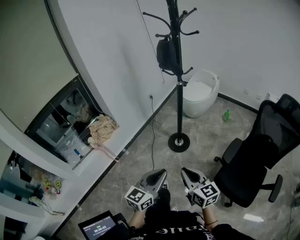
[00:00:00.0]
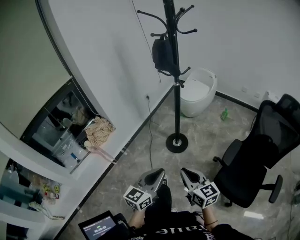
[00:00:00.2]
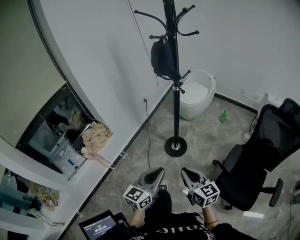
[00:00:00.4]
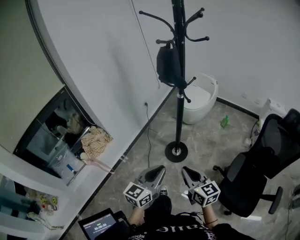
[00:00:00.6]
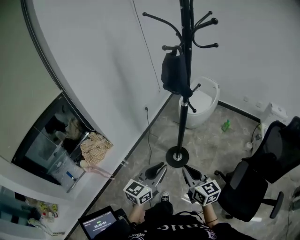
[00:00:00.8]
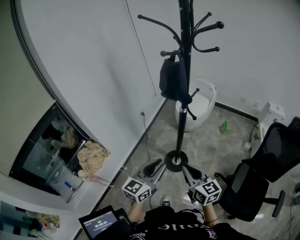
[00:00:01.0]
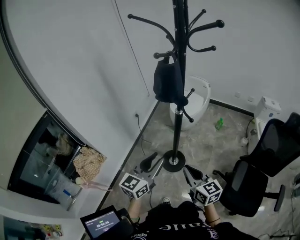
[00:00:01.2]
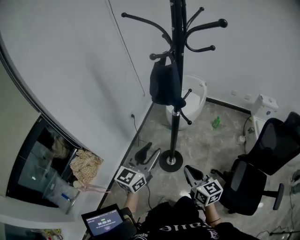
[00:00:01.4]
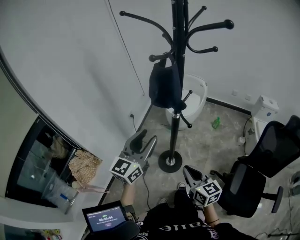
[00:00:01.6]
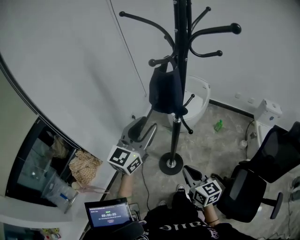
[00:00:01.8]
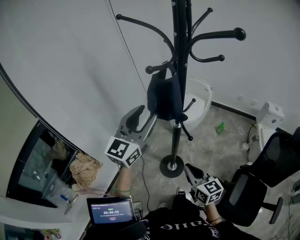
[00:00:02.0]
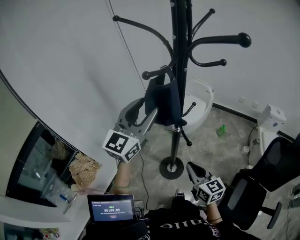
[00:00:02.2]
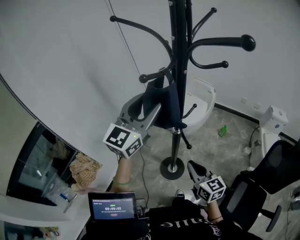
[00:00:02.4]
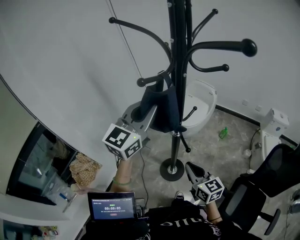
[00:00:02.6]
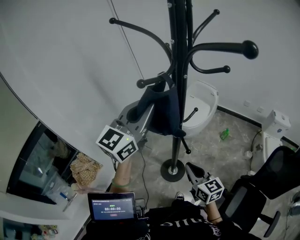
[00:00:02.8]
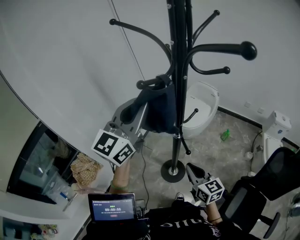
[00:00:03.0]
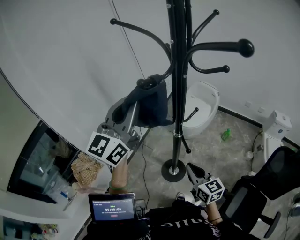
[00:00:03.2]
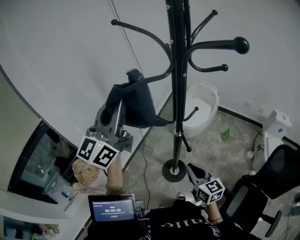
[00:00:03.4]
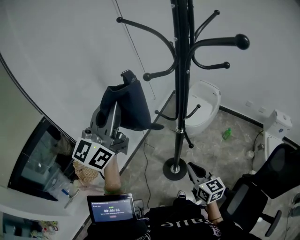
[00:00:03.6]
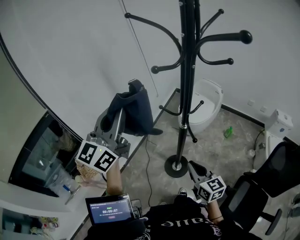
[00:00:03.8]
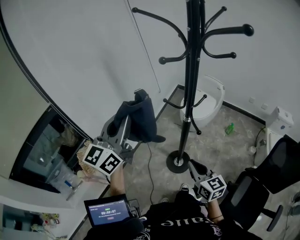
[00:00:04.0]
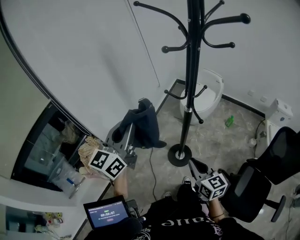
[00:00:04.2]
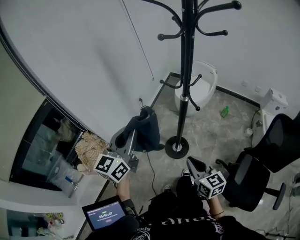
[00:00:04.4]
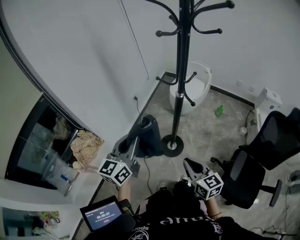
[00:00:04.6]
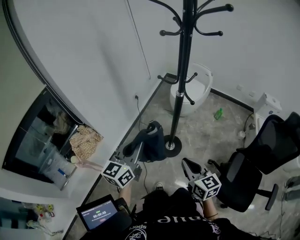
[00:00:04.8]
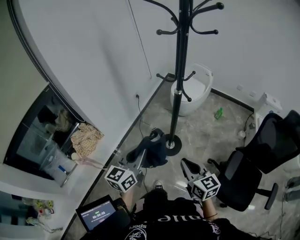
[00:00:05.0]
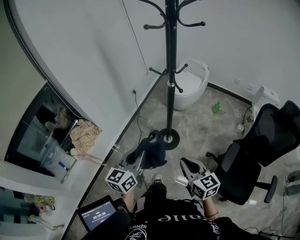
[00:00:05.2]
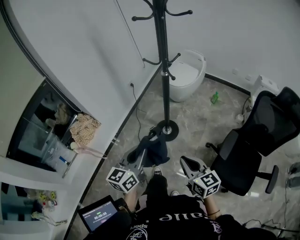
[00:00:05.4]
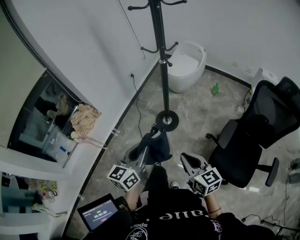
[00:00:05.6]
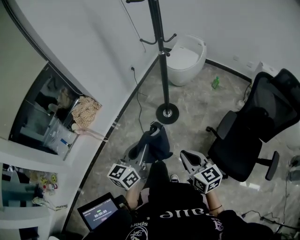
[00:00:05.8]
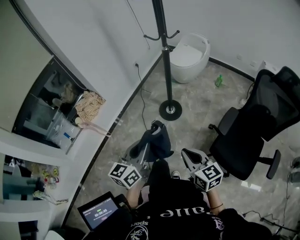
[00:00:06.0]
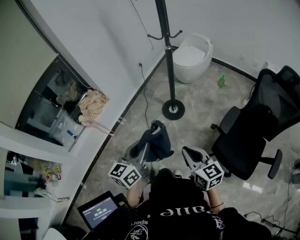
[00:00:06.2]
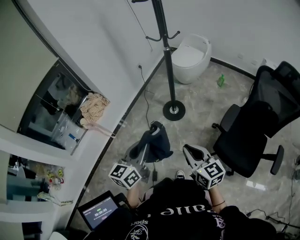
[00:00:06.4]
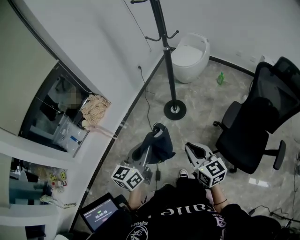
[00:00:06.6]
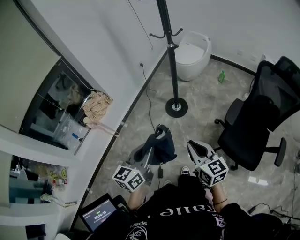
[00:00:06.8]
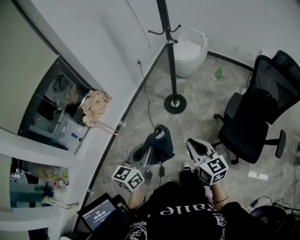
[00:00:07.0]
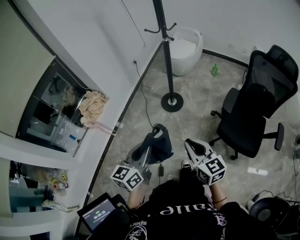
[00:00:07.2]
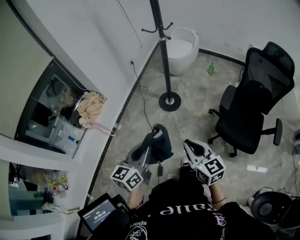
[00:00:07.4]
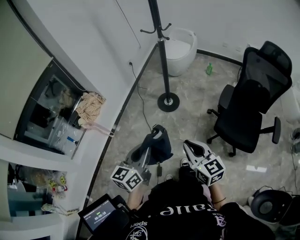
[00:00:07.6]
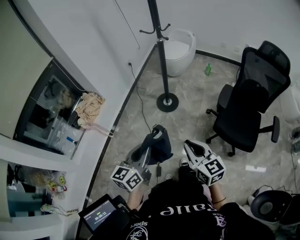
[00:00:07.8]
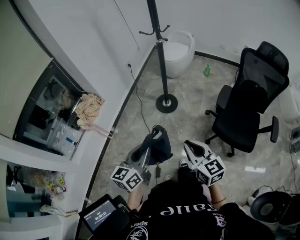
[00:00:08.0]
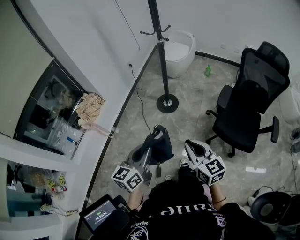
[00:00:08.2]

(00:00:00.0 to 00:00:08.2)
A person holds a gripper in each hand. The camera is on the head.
00:00:00.0 - 00:00:01.6: Both grippers travel together forward, some 40 cm. The left gripper opens up.
00:00:01.6 - 00:00:03.2: The right gripper heads forward, covering roughly 15 cm. Meanwhile the left gripper travels upward and forward by roughly 20 cm, and closes.
00:00:03.2 - 00:00:05.0: The left gripper heads backward and downward, covering some 40 cm, and changes its angle by some 30 degrees. Meanwhile the right gripper shifts roughly 25 cm backward.
00:00:05.0 - 00:00:06.6: Both grippers move backward, some 30 cm.
00:00:06.6 - 00:00:08.2: The grippers both shift backward and to the left by about 15 cm.

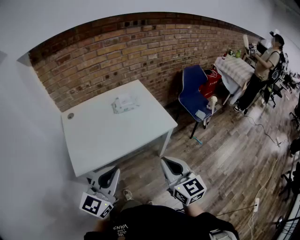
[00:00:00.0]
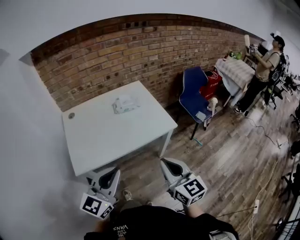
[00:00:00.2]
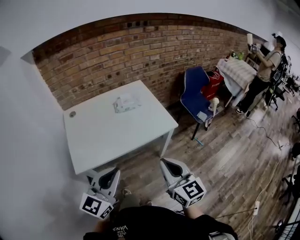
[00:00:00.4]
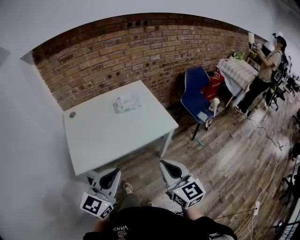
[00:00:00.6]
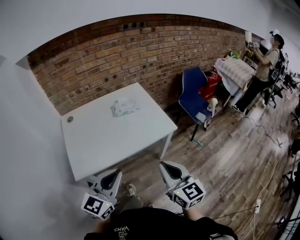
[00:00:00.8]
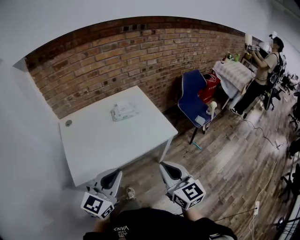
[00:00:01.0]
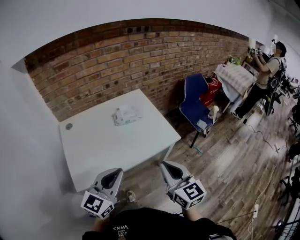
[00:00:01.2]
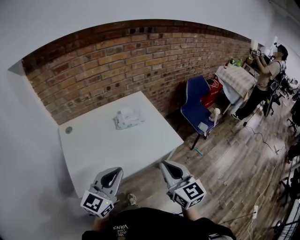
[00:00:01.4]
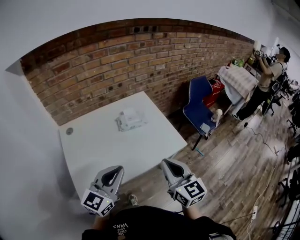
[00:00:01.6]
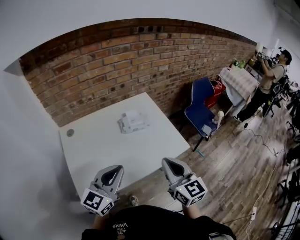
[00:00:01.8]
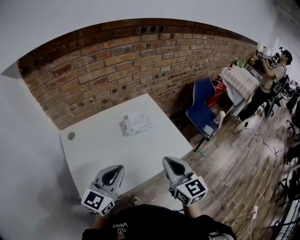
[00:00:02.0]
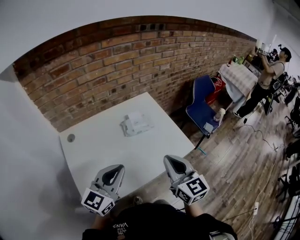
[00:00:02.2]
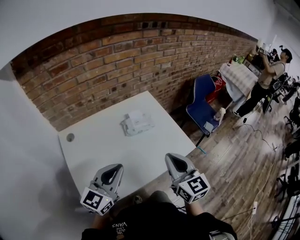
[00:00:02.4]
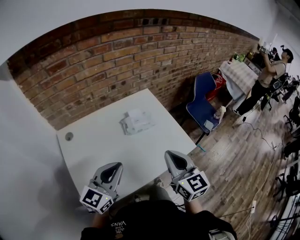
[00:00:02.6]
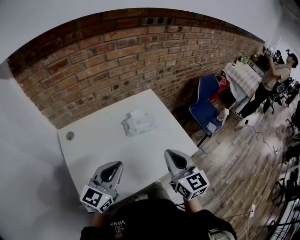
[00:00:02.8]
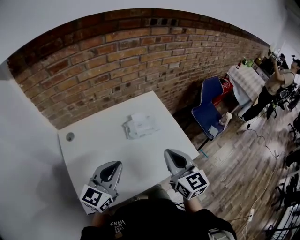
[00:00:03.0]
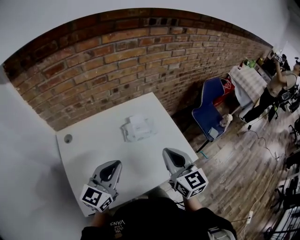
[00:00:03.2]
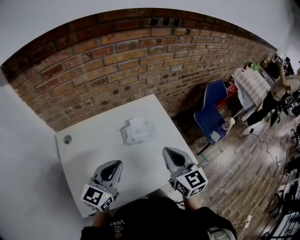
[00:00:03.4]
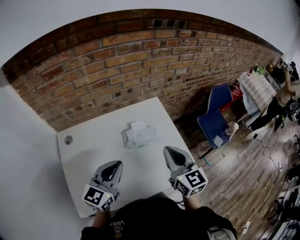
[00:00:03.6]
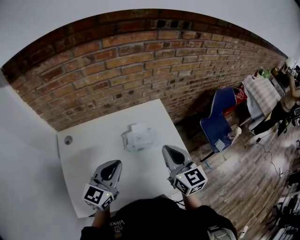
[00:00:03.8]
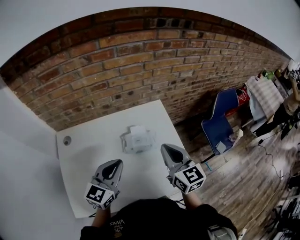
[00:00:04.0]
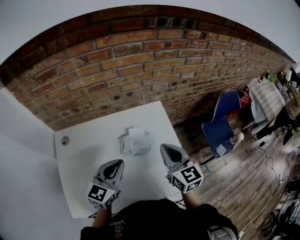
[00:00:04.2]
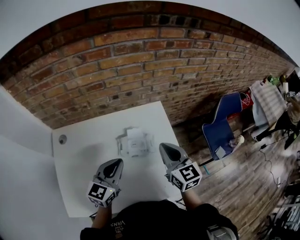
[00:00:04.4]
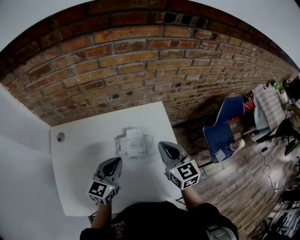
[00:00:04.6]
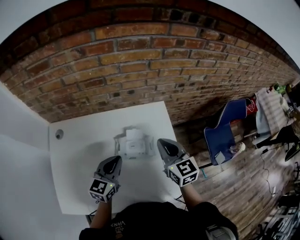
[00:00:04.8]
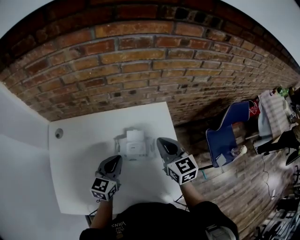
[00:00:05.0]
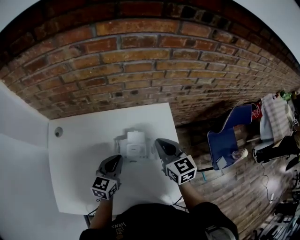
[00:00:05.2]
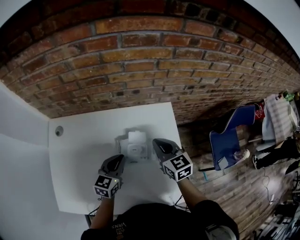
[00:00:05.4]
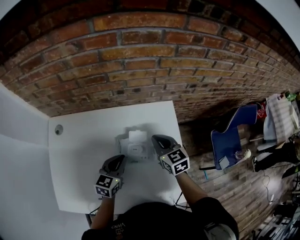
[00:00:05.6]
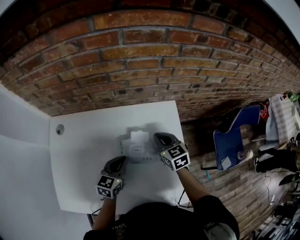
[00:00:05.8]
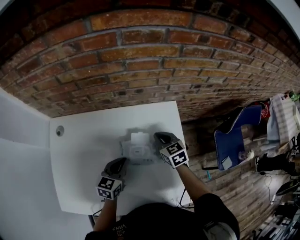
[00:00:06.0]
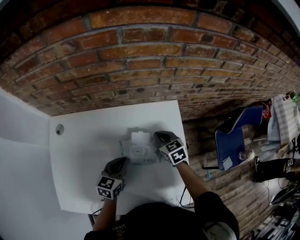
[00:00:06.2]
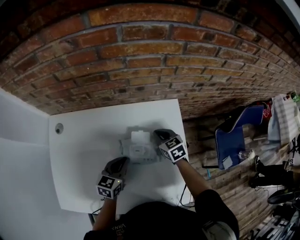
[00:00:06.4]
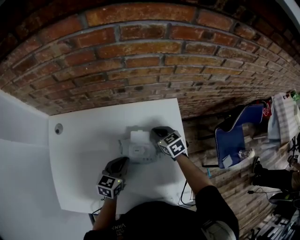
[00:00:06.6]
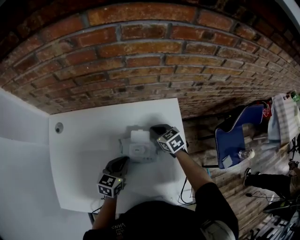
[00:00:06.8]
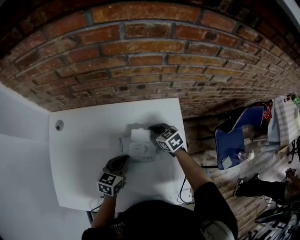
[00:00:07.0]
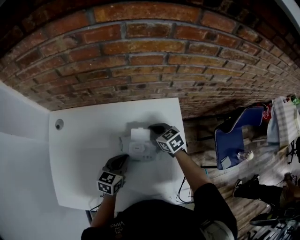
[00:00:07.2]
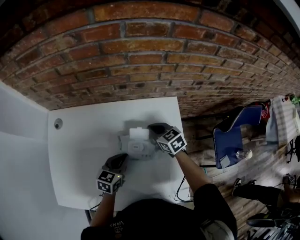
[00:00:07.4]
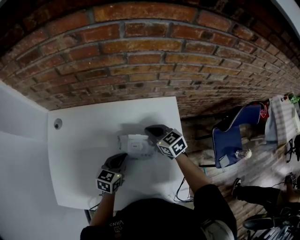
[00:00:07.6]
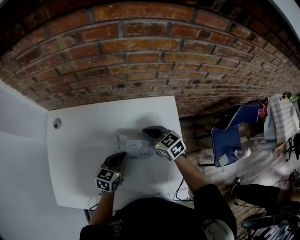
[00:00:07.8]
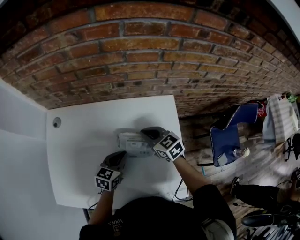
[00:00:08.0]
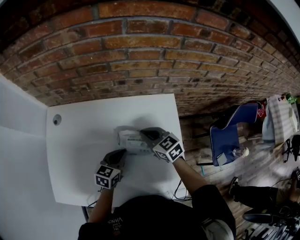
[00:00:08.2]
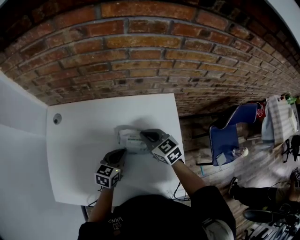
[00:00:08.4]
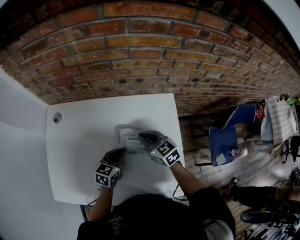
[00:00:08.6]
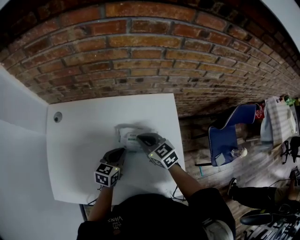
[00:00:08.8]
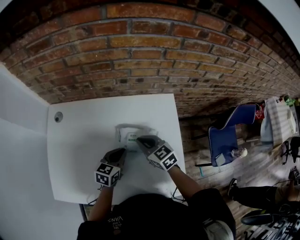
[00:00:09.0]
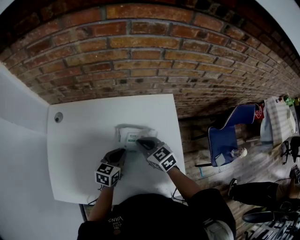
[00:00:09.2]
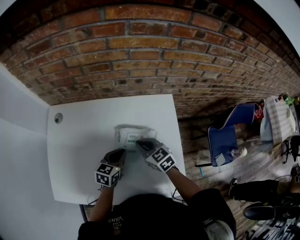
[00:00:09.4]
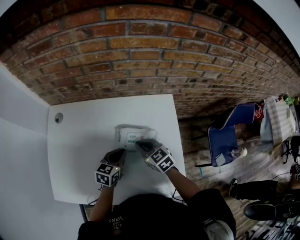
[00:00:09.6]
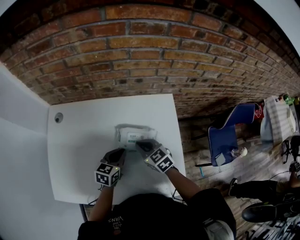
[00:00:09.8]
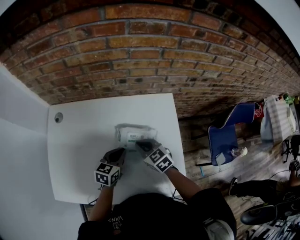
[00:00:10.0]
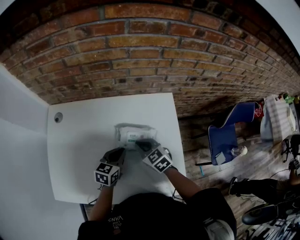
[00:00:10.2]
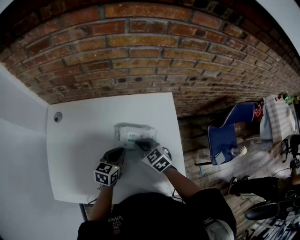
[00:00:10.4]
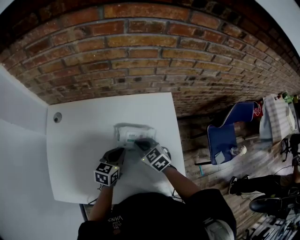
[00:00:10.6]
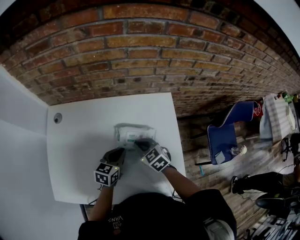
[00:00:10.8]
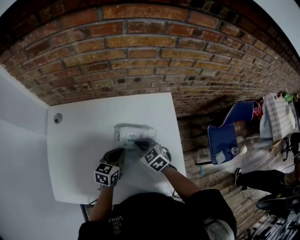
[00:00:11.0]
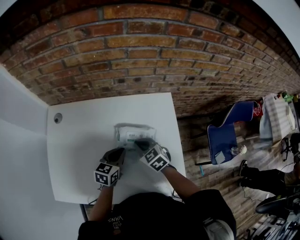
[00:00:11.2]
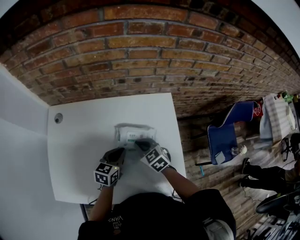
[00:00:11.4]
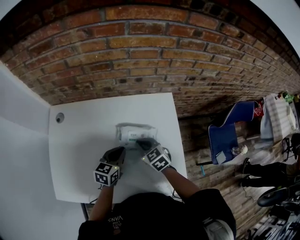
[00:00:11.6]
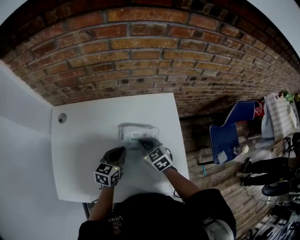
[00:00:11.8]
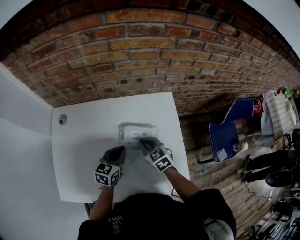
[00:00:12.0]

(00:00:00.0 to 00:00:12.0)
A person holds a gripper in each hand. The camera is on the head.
00:00:00.0 - 00:00:01.6: The left gripper is displaced forward by approximately 15 cm, while the right gripper heads forward and to the left, covering roughly 15 cm.
00:00:01.6 - 00:00:03.0: Both grippers travel together forward and to the left, approximately 15 cm.
00:00:03.0 - 00:00:04.4: The left gripper is displaced forward, to the right and downward by about 20 cm, while the right gripper heads forward, covering roughly 20 cm.
00:00:04.4 - 00:00:06.0: Both grippers travel together downward and forward, about 20 cm. The right gripper swivels about 30 degrees. Meanwhile the left gripper changes its angle by approximately 20 degrees.
00:00:06.0 - 00:00:07.6: The grippers move only a little.
00:00:07.6 - 00:00:09.0: The right gripper travels backward by about 10 cm.
00:00:09.0 - 00:00:12.0: The grippers move only a little.

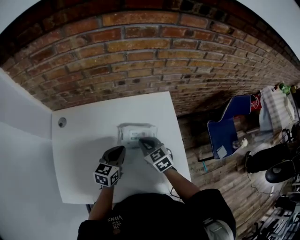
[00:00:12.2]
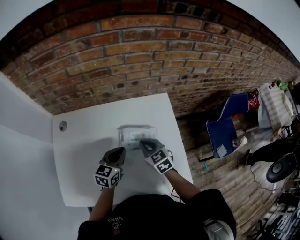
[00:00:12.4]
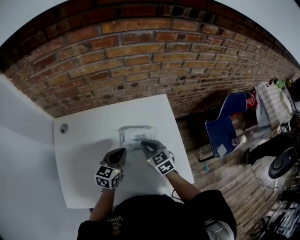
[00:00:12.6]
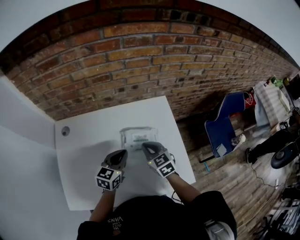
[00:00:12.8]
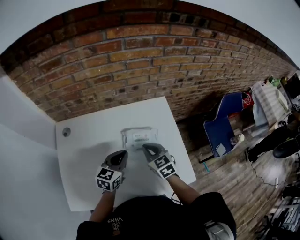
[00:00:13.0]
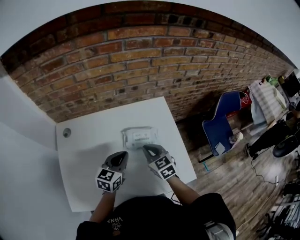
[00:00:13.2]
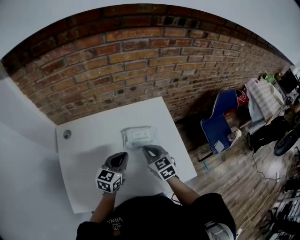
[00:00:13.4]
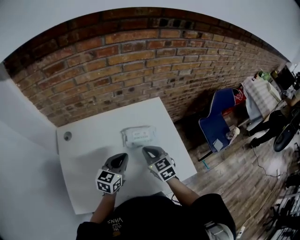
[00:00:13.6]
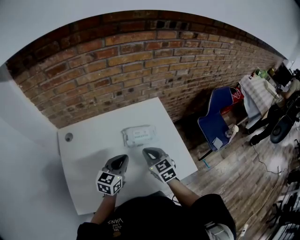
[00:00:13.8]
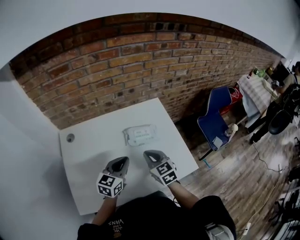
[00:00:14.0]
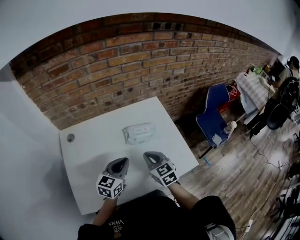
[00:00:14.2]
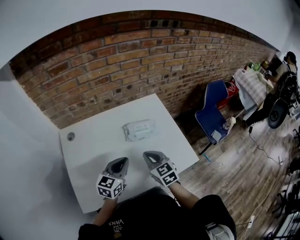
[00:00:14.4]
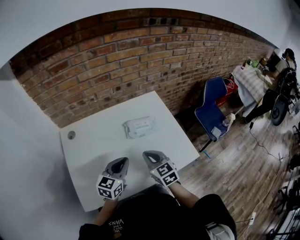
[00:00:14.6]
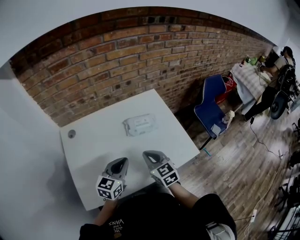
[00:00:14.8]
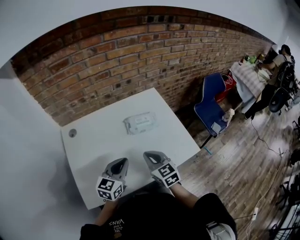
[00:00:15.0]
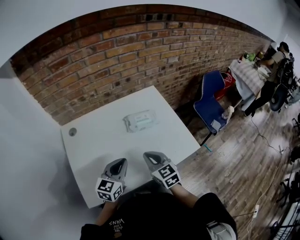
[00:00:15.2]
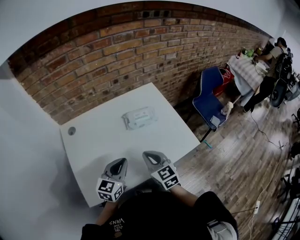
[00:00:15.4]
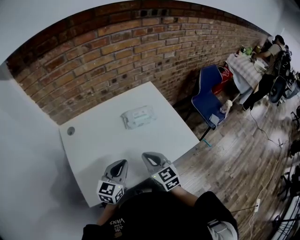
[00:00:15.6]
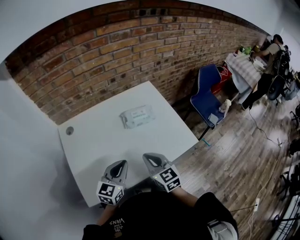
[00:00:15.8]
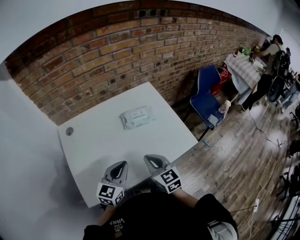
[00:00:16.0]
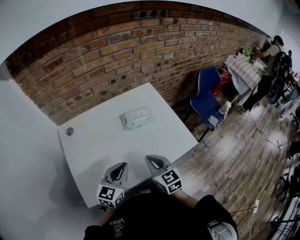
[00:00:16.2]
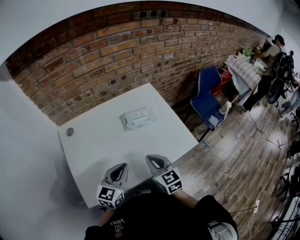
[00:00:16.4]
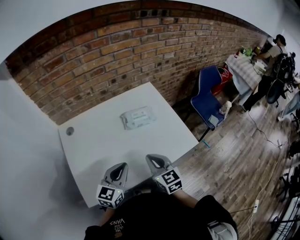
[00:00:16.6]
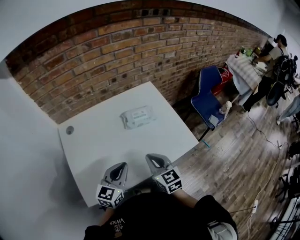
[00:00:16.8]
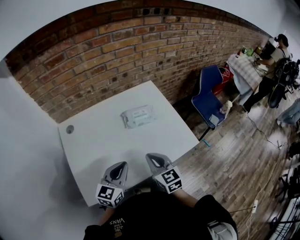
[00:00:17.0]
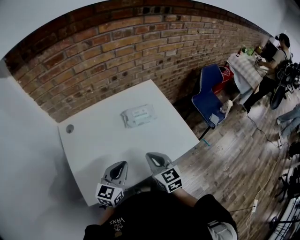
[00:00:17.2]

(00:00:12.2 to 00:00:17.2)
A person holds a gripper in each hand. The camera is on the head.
00:00:12.2 - 00:00:13.8: The grippers both shift backward and upward by some 10 cm.
00:00:13.8 - 00:00:15.6: Both grippers travel together backward, about 15 cm.
00:00:15.6 - 00:00:17.2: There are only small adjustments of the grippers.
